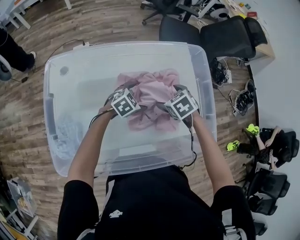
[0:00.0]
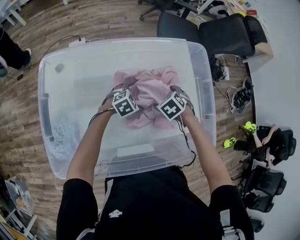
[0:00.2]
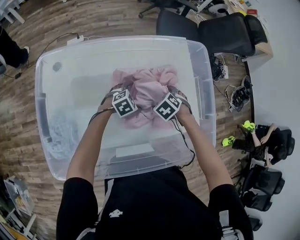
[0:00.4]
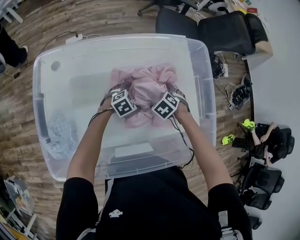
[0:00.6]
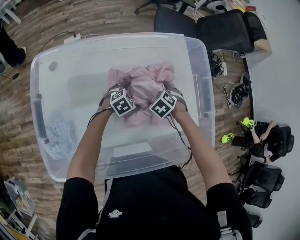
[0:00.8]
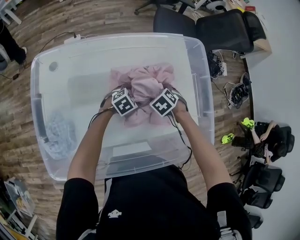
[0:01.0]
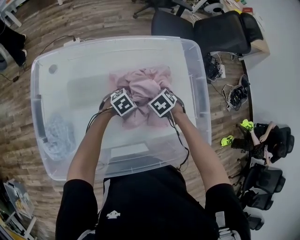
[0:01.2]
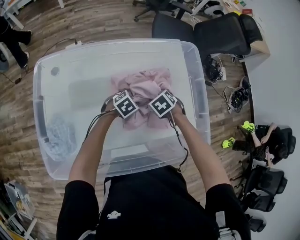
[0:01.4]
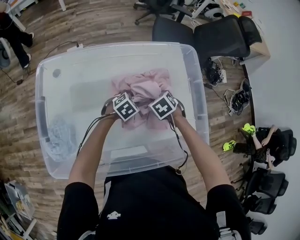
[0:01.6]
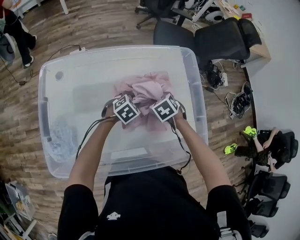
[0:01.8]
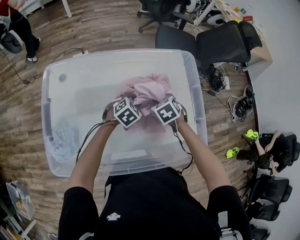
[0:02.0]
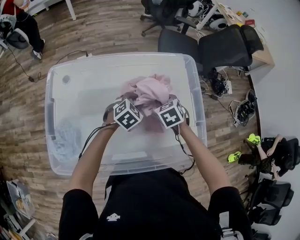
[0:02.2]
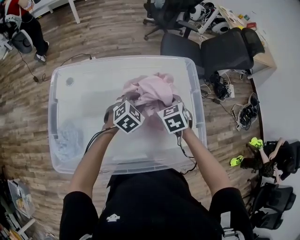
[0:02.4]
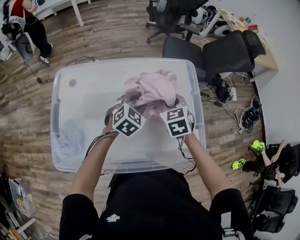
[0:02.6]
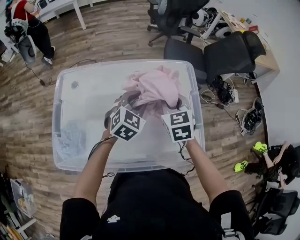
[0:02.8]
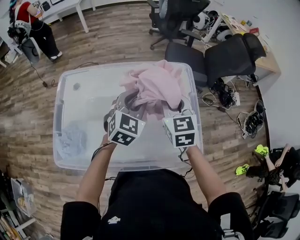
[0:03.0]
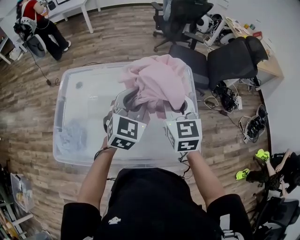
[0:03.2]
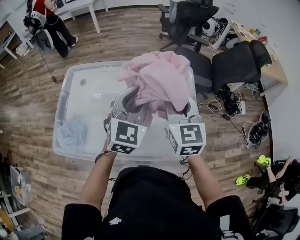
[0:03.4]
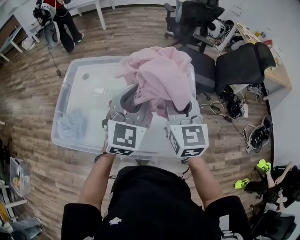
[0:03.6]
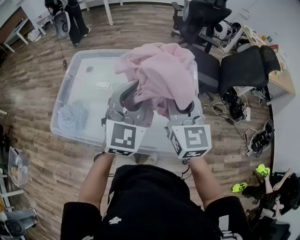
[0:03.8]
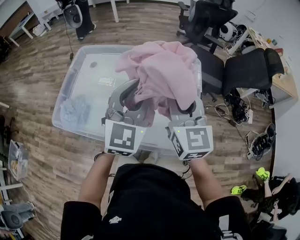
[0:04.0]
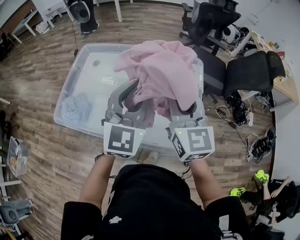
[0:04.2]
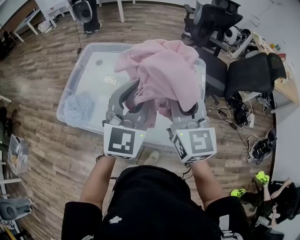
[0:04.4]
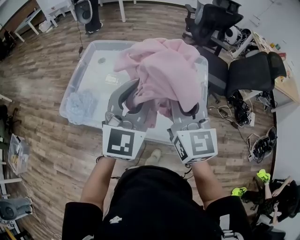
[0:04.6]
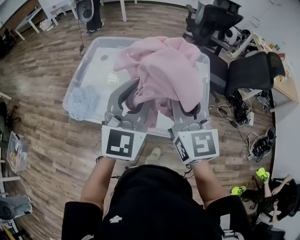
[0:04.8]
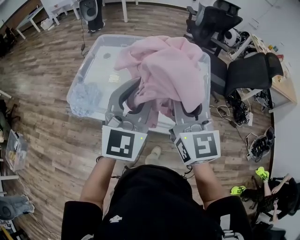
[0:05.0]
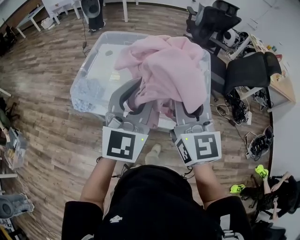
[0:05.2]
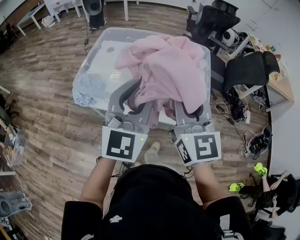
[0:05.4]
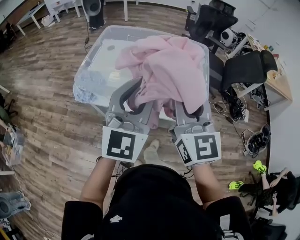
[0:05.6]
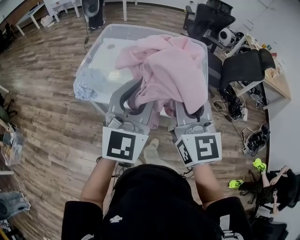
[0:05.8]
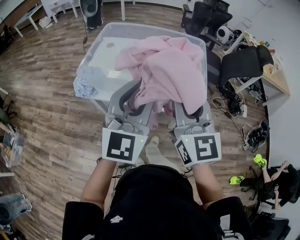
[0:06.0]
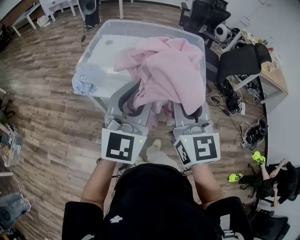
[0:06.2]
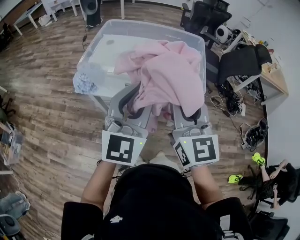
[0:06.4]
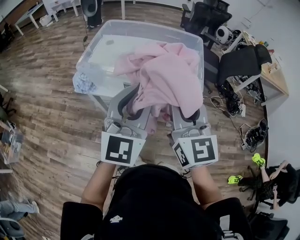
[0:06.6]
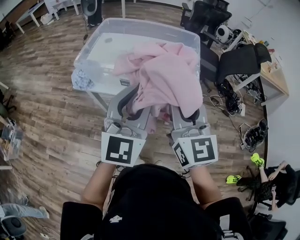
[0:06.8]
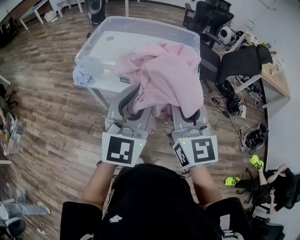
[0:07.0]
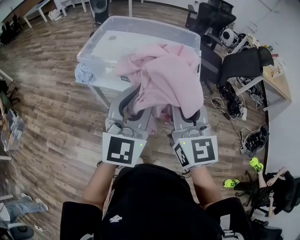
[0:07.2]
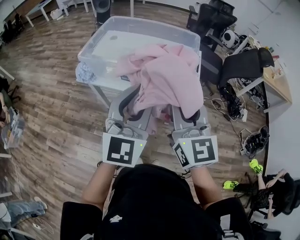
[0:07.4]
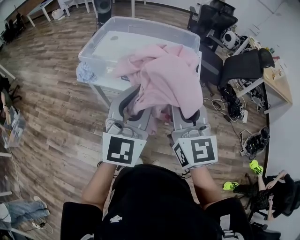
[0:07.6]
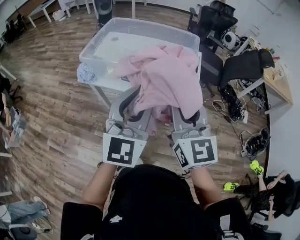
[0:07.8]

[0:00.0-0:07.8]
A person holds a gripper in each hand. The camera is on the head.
0.0 to 1.6 s: The right gripper closes. The left gripper closes.
1.6 to 3.2 s: The grippers both shift upward by about 30 cm. The left gripper tilts its fingers about 40 degrees upward. The right gripper tips its fingers upward by about 60 degrees.
3.2 to 4.6 s: Both grippers travel together backward and upward, roughly 15 cm. The left gripper turns by roughly 20 degrees. Meanwhile the right gripper swivels roughly 20 degrees.
4.6 to 6.2 s: Both grippers travel together backward, some 25 cm.
6.2 to 7.8 s: The right gripper shifts about 10 cm to the right and backward. The left gripper goes roughly 10 cm backward and to the right.

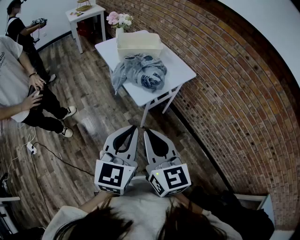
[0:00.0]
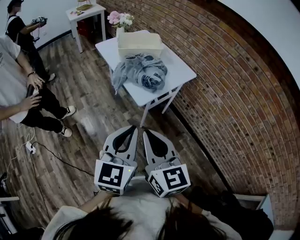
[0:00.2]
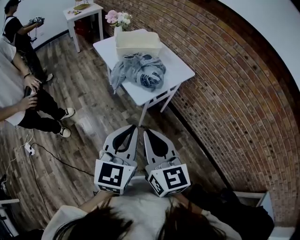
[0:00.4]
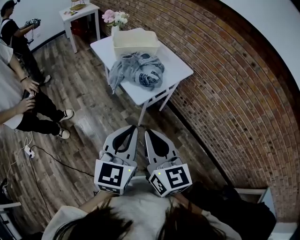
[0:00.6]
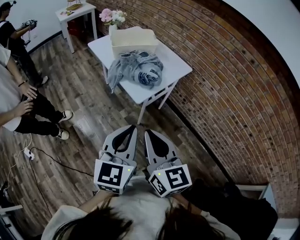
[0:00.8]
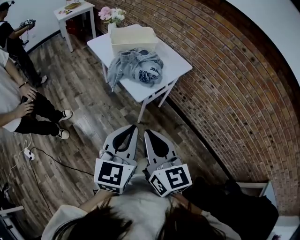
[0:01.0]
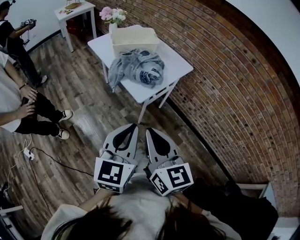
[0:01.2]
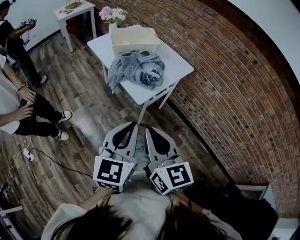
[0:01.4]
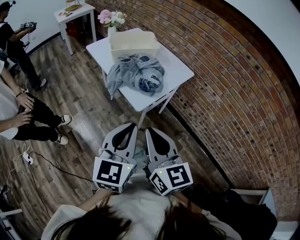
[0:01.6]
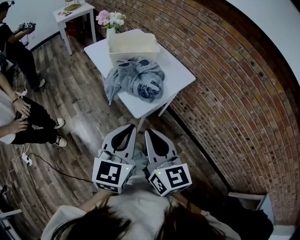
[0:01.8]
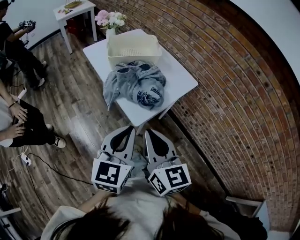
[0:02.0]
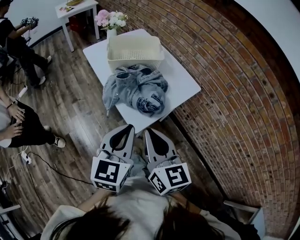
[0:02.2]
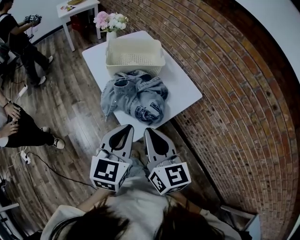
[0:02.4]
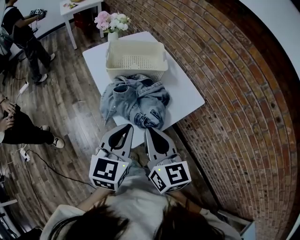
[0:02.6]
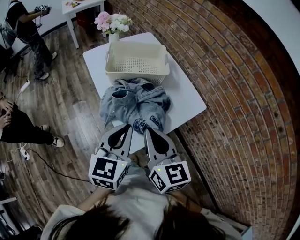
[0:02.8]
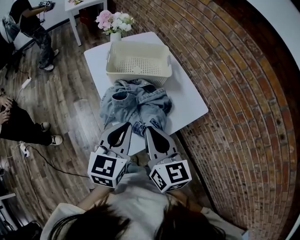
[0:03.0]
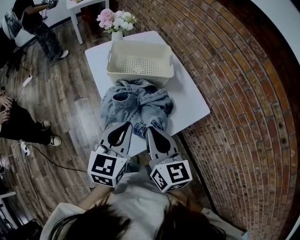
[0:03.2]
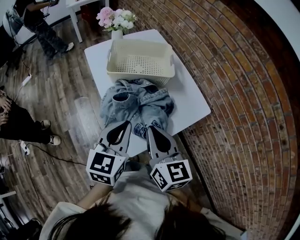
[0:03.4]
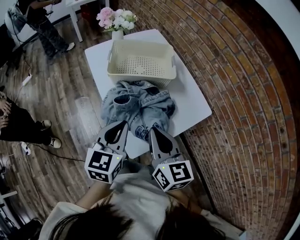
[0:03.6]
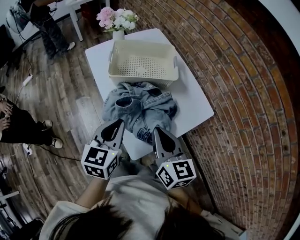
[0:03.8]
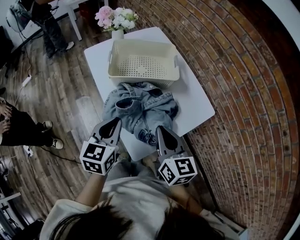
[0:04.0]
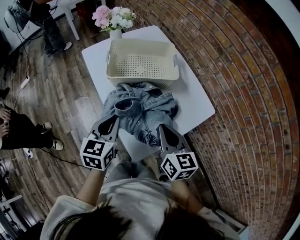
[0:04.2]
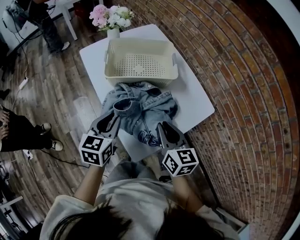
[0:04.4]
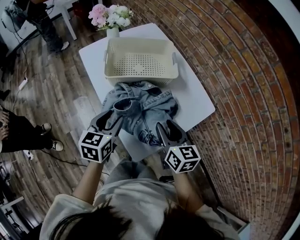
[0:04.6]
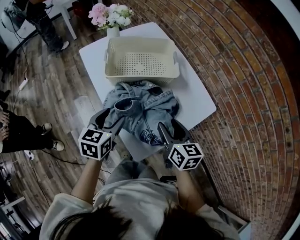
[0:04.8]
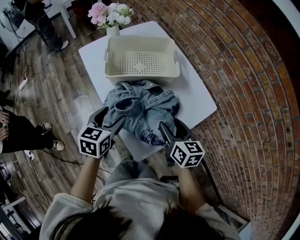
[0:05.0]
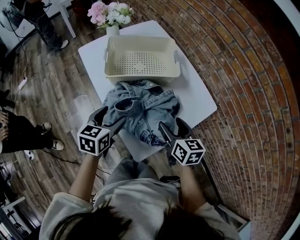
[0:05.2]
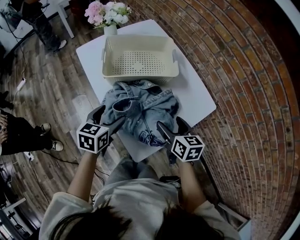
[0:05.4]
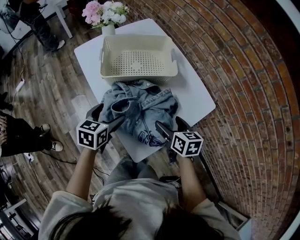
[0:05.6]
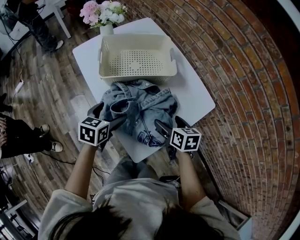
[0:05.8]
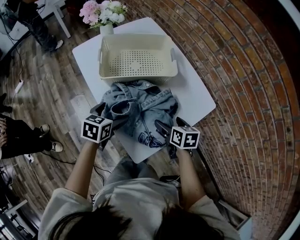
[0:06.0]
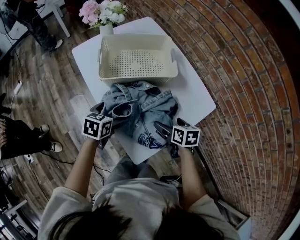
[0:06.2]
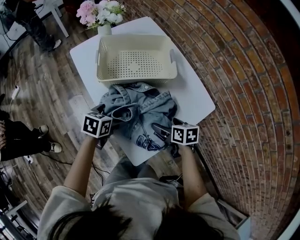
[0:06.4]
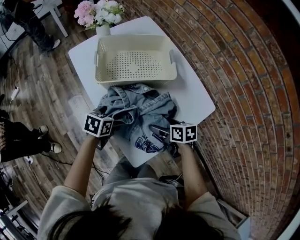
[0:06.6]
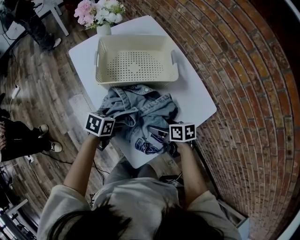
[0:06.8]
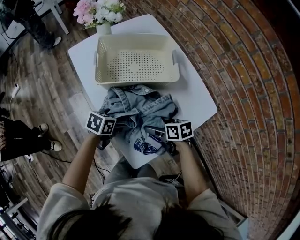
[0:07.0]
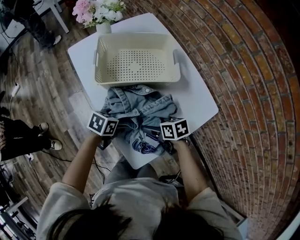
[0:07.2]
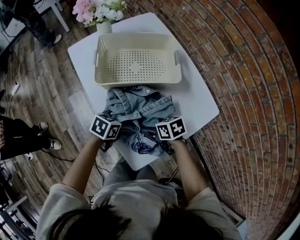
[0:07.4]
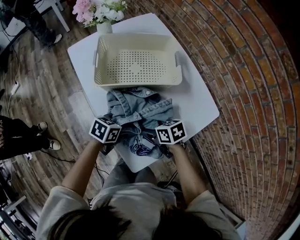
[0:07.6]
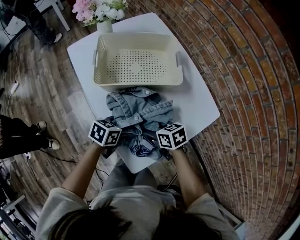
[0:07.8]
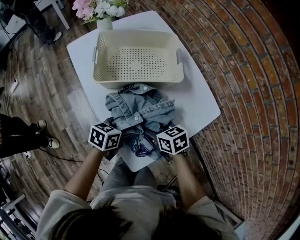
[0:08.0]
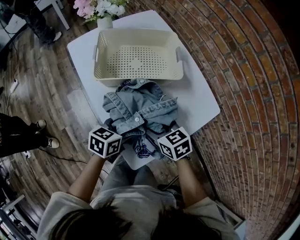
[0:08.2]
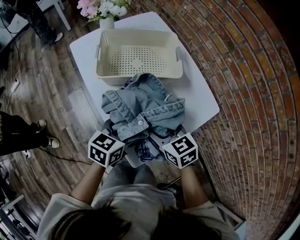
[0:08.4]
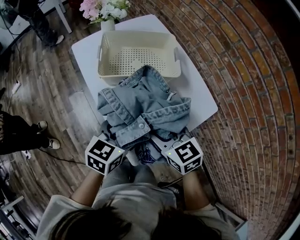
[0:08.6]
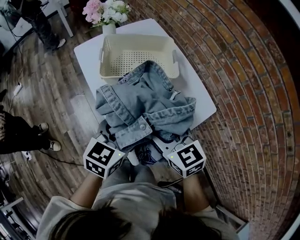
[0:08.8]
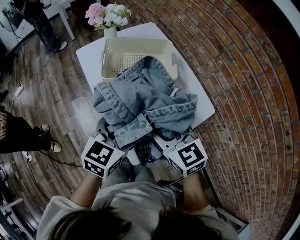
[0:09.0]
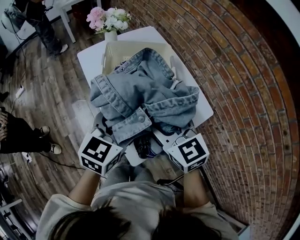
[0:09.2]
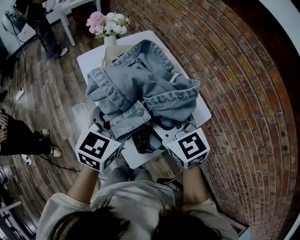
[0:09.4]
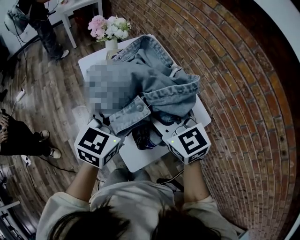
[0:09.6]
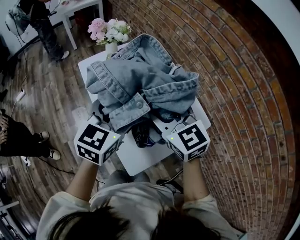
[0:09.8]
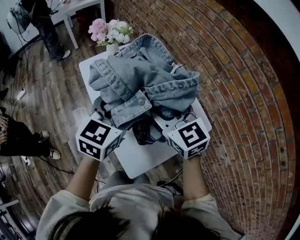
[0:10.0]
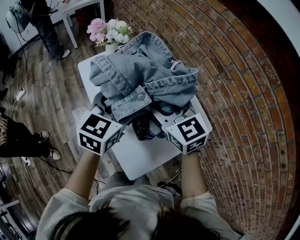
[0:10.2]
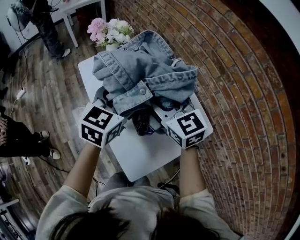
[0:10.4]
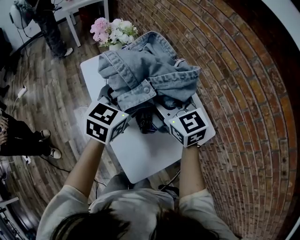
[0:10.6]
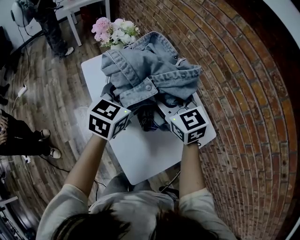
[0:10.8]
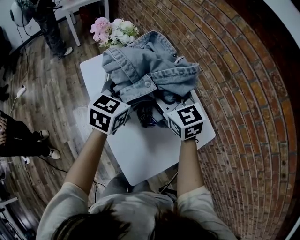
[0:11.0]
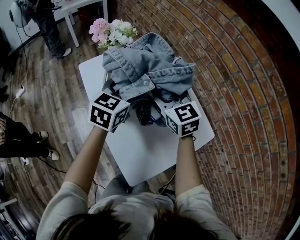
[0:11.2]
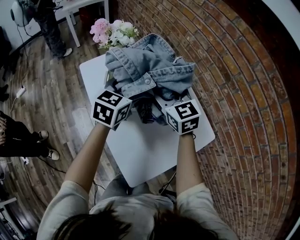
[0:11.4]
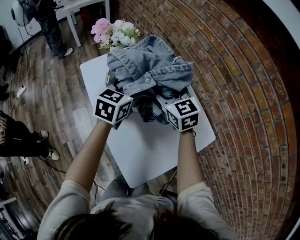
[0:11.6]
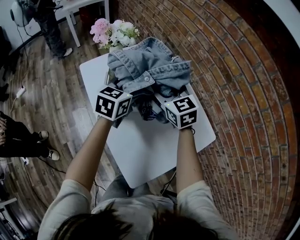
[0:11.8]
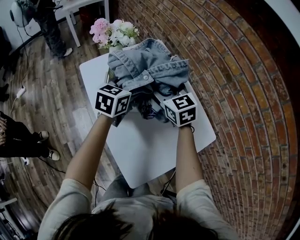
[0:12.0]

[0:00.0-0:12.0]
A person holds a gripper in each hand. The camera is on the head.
0.0 to 1.6 s: Both grippers move forward, about 5 cm.
1.6 to 3.0 s: Both grippers move forward, some 30 cm.
3.0 to 4.4 s: The right gripper shifts approximately 15 cm downward and forward. Meanwhile the left gripper is displaced downward, forward and to the left by approximately 15 cm.
4.4 to 6.0 s: The left gripper goes about 10 cm downward and forward, and opens up. Meanwhile the right gripper heads downward, covering roughly 15 cm, rotates some 30 degrees, and opens up.
6.0 to 7.6 s: The right gripper changes place by approximately 10 cm, and rotates roughly 30 degrees. The left gripper goes roughly 5 cm downward, and turns by some 20 degrees.
7.6 to 9.0 s: The grippers both shift upward by approximately 25 cm. The left gripper turns by about 40 degrees. The right gripper rotates some 50 degrees.
9.0 to 10.4 s: Both grippers move forward, some 15 cm.
10.4 to 12.0 s: Both grippers move forward and downward, some 15 cm.

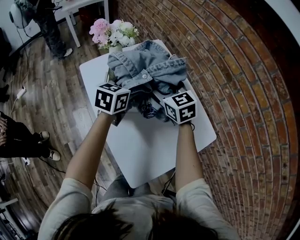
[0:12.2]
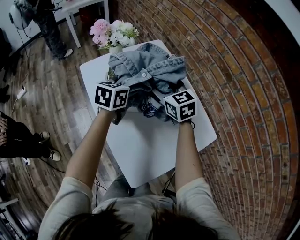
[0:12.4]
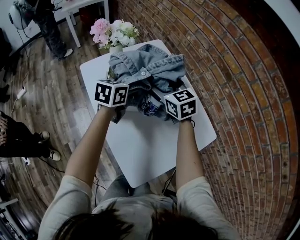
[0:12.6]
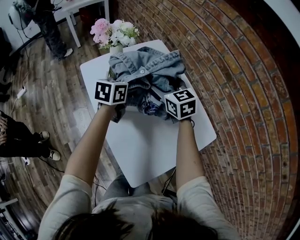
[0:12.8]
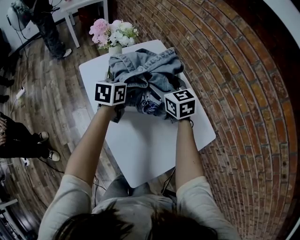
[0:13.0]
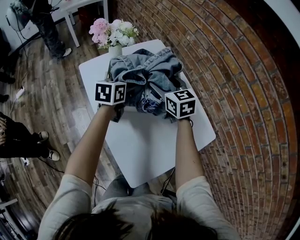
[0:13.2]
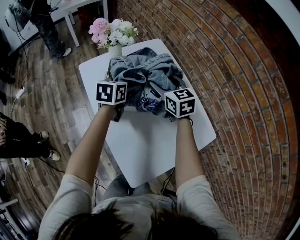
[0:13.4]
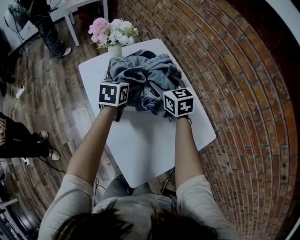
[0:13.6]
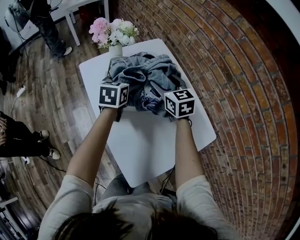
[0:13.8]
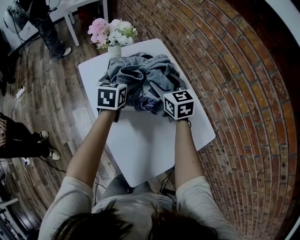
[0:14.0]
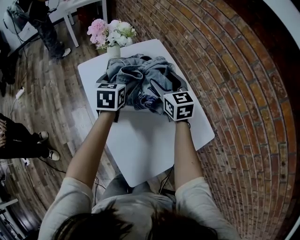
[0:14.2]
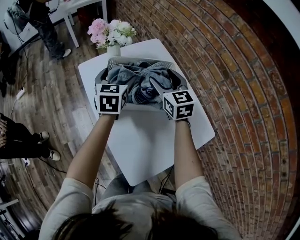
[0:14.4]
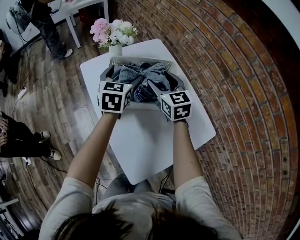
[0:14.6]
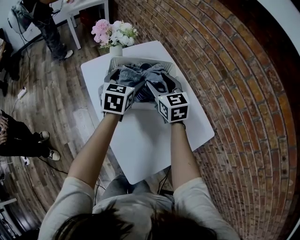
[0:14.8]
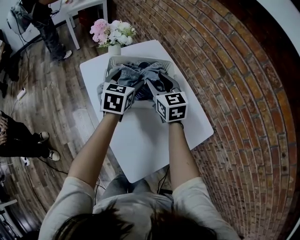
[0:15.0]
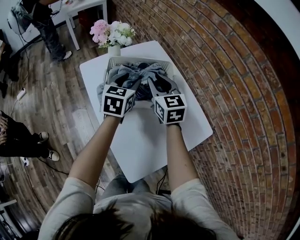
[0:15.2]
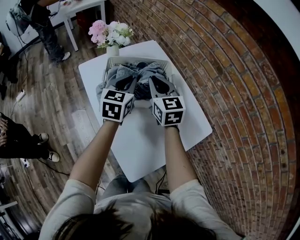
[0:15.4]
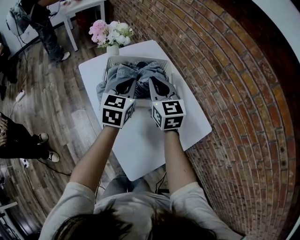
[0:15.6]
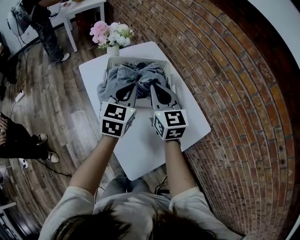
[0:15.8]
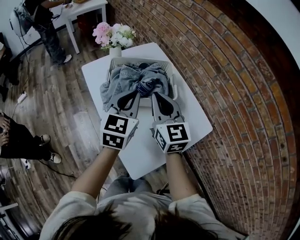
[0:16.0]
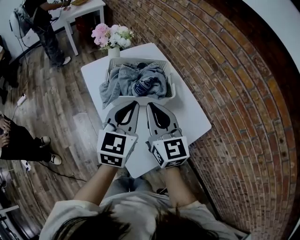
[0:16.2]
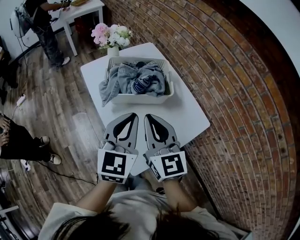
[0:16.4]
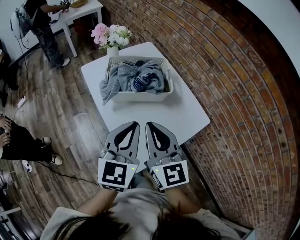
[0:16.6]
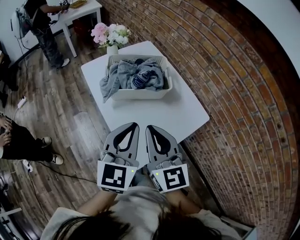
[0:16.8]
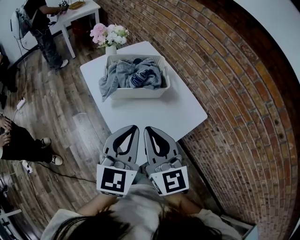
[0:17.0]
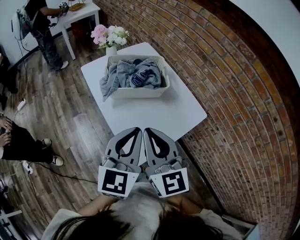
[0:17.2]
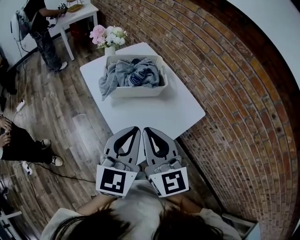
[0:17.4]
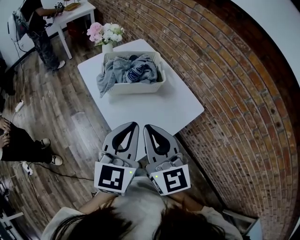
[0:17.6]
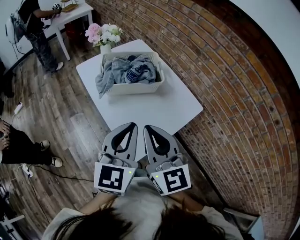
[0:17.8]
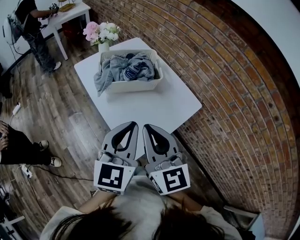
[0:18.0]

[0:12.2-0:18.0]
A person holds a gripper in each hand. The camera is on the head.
12.2 to 13.6 s: The left gripper changes place by about 5 cm.
13.6 to 15.0 s: The right gripper moves roughly 5 cm, while the left gripper moves upward, some 5 cm.
15.0 to 16.6 s: The two grippers go approximately 25 cm backward. The right gripper closes its fingers; the left gripper closes.
16.6 to 18.0 s: The two grippers go approximately 10 cm backward.
